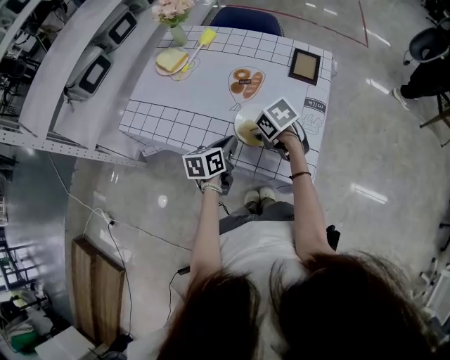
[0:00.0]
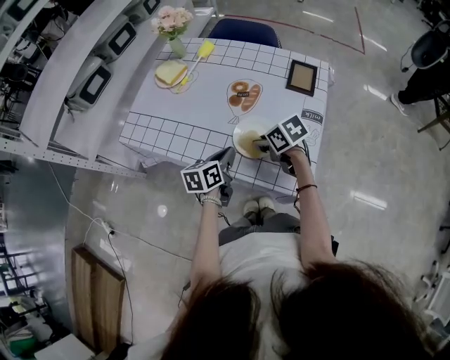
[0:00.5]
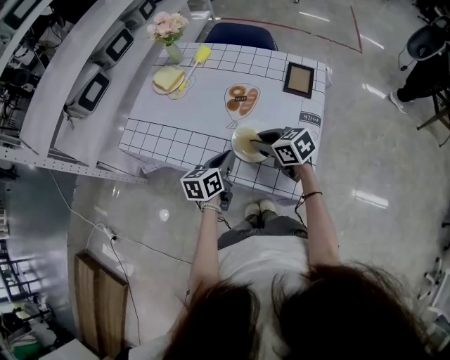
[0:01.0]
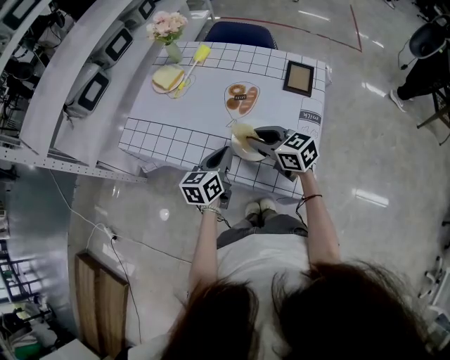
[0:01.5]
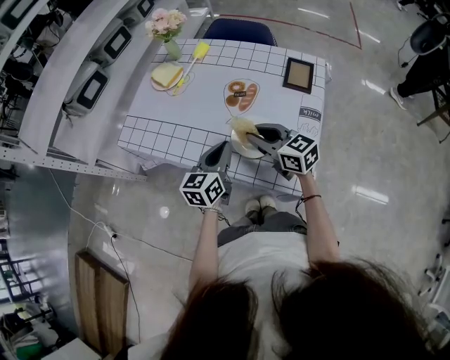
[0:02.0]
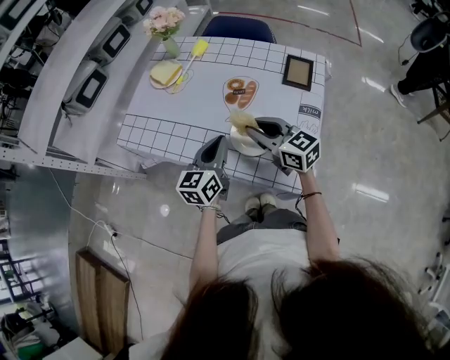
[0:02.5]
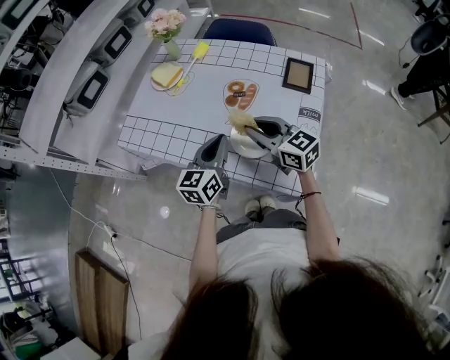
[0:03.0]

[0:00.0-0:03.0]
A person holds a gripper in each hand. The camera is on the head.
0:00.0 to 0:01.5: The right gripper moves upward, approximately 10 cm, and tilts its fingers about 40 degrees upward.
0:01.5 to 0:03.0: The left gripper moves upward, roughly 5 cm.

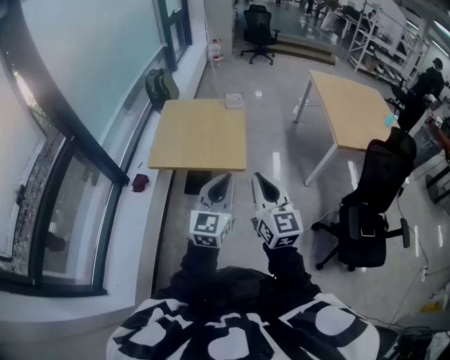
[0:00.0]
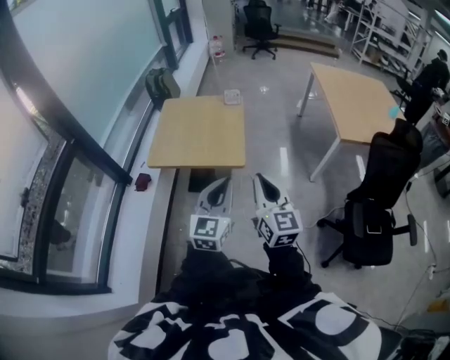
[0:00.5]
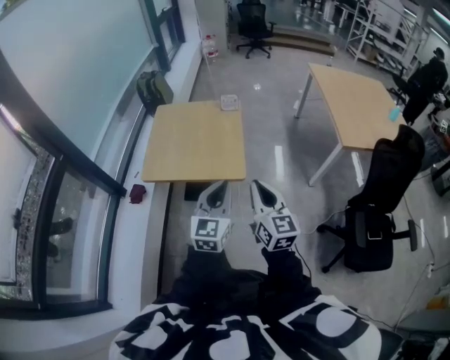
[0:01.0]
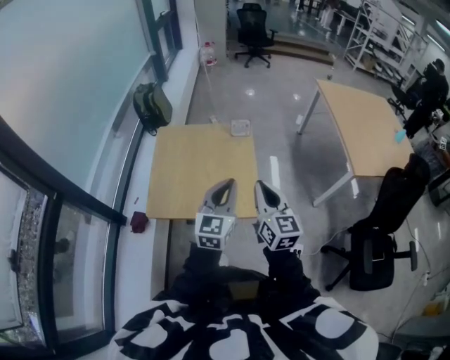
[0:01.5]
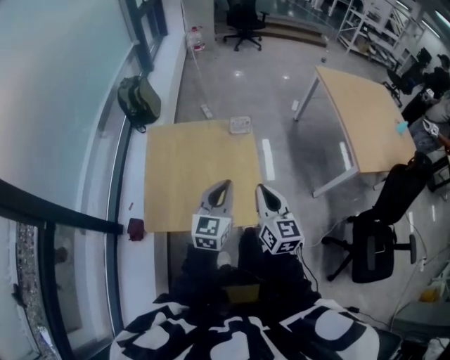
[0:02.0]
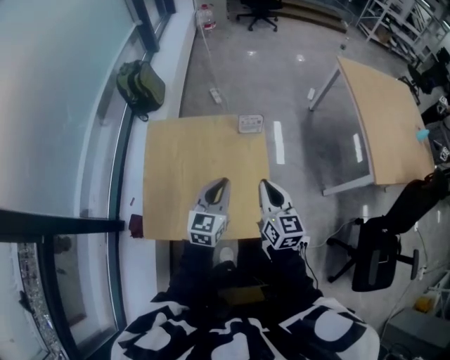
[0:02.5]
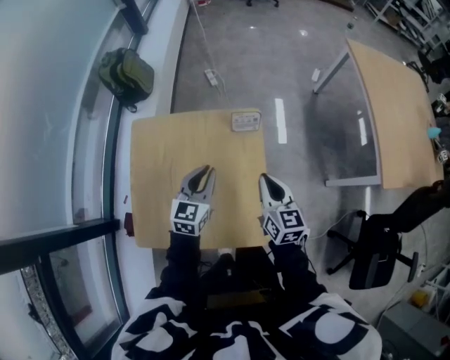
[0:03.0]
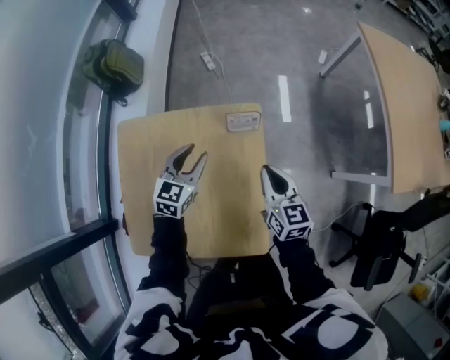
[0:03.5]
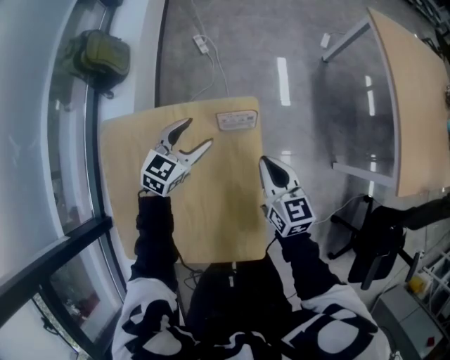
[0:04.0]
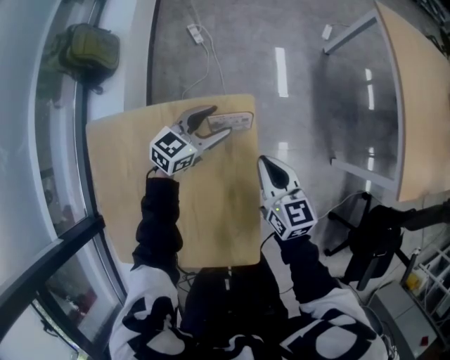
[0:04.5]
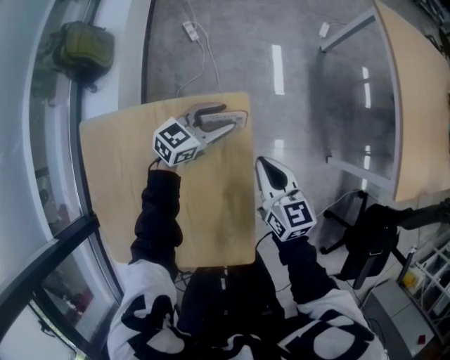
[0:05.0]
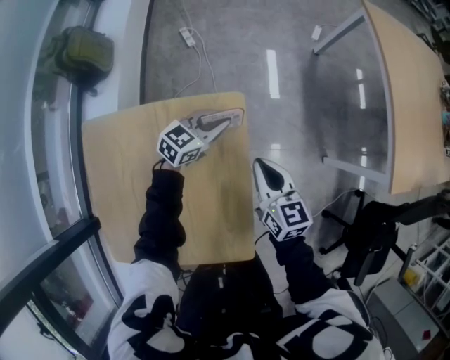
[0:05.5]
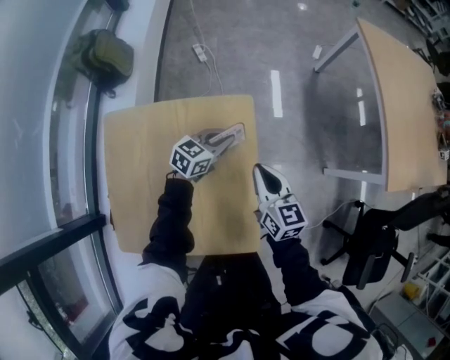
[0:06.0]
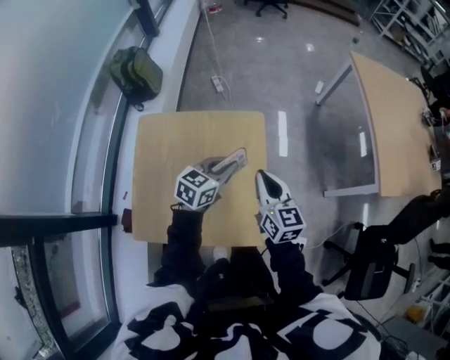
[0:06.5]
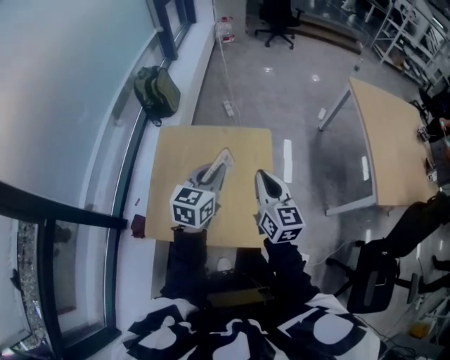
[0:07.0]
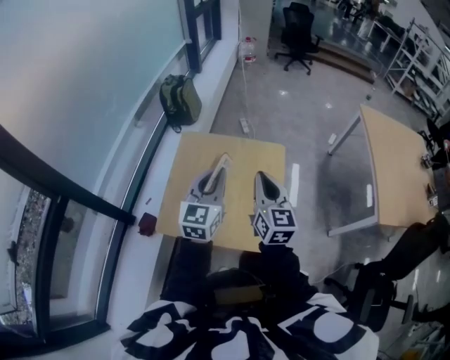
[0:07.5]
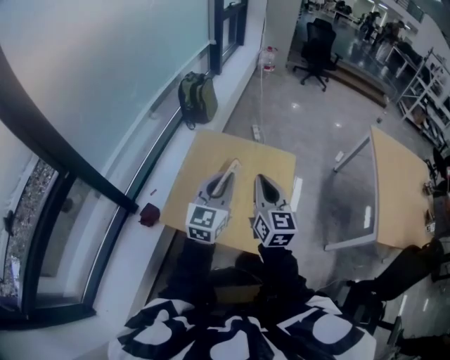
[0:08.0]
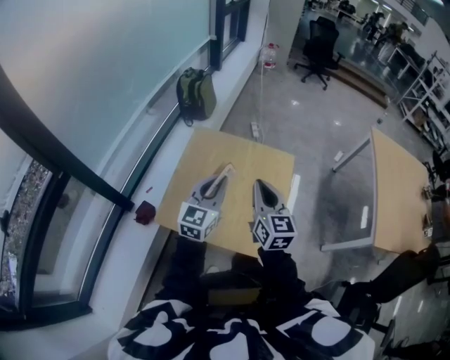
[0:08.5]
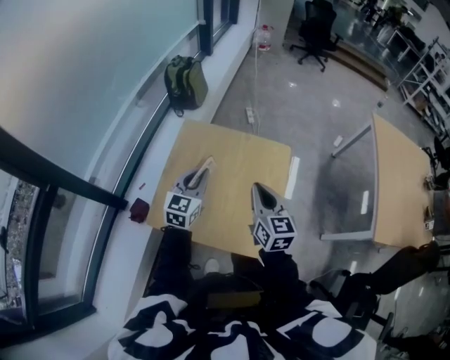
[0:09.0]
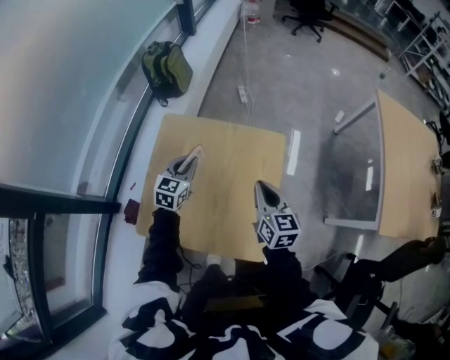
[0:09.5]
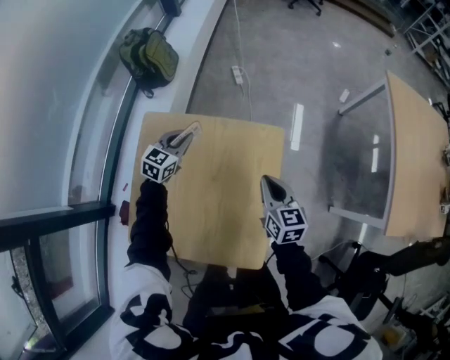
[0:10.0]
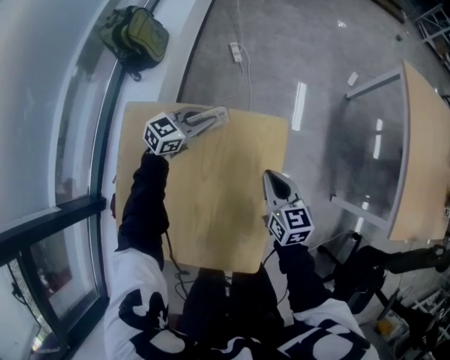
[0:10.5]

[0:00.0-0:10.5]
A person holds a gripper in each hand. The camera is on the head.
0:00.0 to 0:02.0: Both grippers travel together forward, about 35 cm.
0:02.0 to 0:04.0: Both grippers travel together forward and downward, some 40 cm. The left gripper swivels about 30 degrees, and opens up.
0:04.0 to 0:06.5: The right gripper heads backward and upward, covering approximately 15 cm. Meanwhile the left gripper heads backward, to the right and upward, covering roughly 20 cm, and closes up.
0:06.5 to 0:08.5: Both grippers travel together to the left, upward and backward, about 20 cm. The left gripper rotates roughly 40 degrees.
0:08.5 to 0:10.5: The left gripper is displaced forward and downward by some 40 cm, and turns by some 50 degrees. The right gripper travels downward, forward and to the right by about 35 cm, and swivels some 20 degrees.

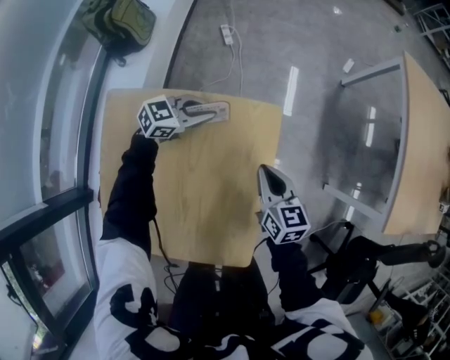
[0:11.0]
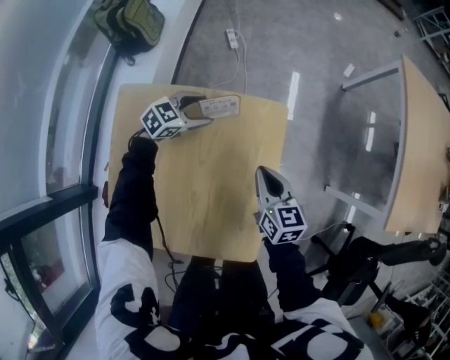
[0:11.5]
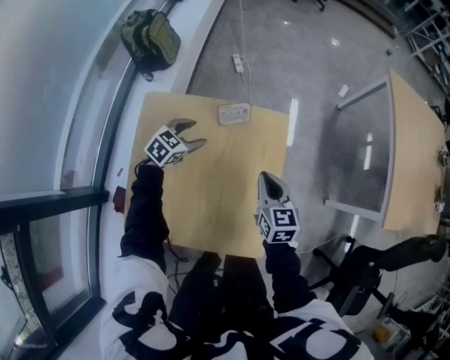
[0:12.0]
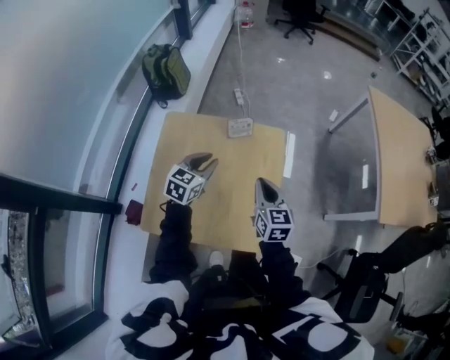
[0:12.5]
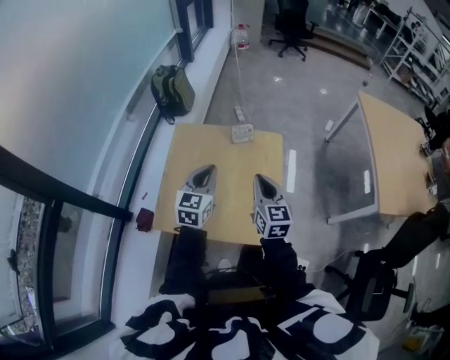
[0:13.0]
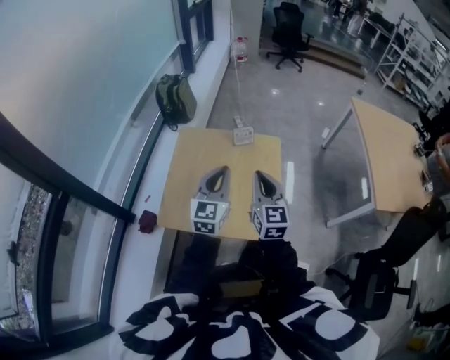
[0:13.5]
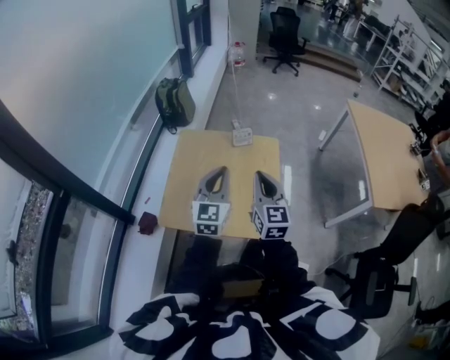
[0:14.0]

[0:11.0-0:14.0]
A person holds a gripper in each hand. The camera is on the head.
0:11.0 to 0:12.5: The grippers both shift backward and upward by approximately 20 cm. The left gripper rotates some 40 degrees, and opens, then closes again.
0:12.5 to 0:14.0: The two grippers go some 20 cm upward and backward. The left gripper rotates about 30 degrees.

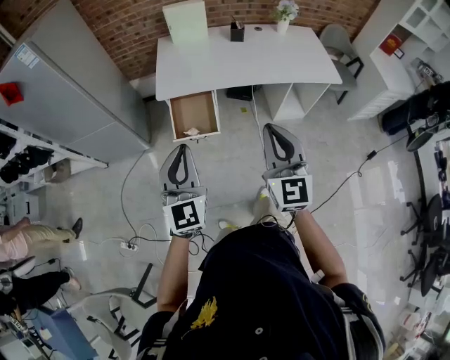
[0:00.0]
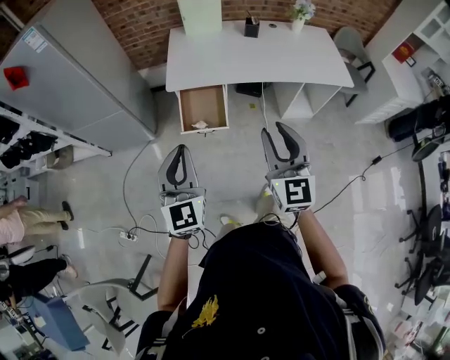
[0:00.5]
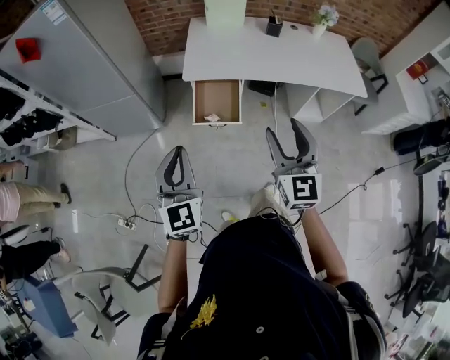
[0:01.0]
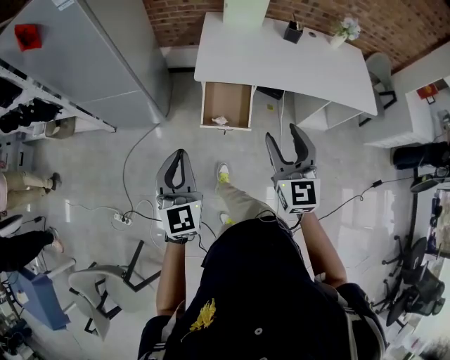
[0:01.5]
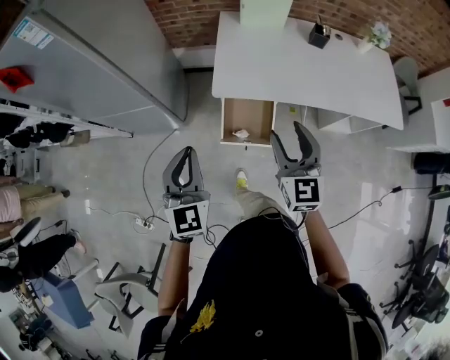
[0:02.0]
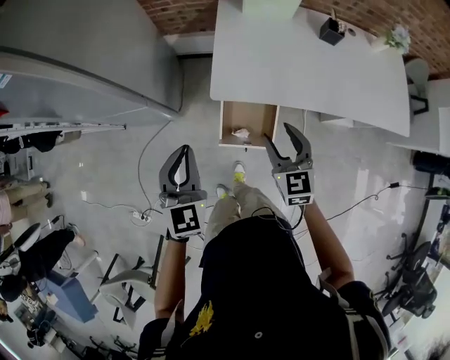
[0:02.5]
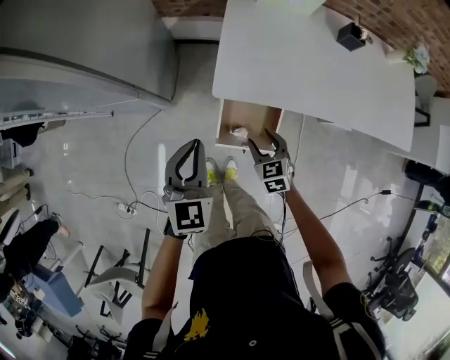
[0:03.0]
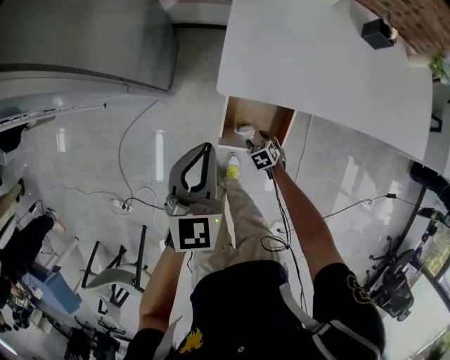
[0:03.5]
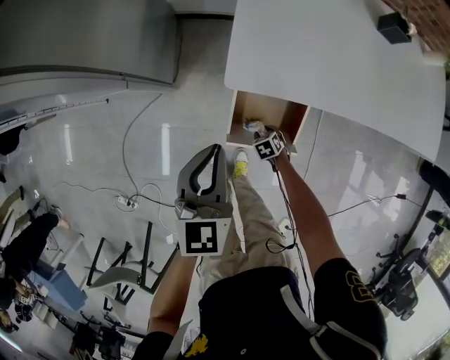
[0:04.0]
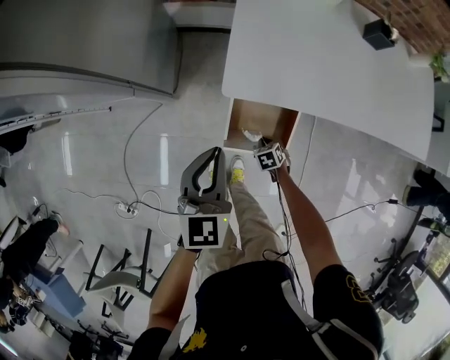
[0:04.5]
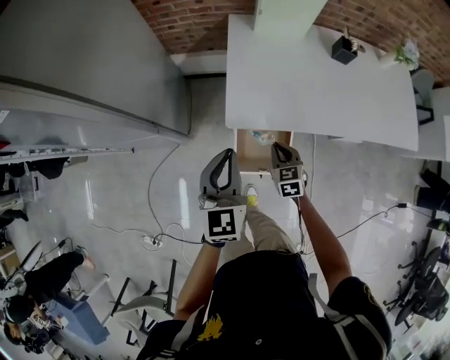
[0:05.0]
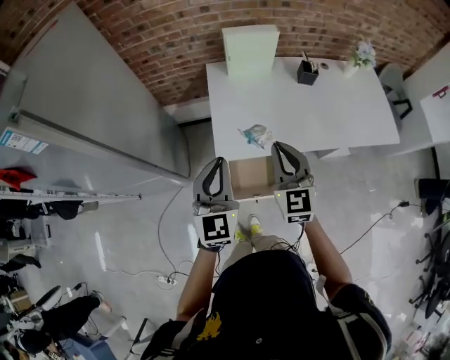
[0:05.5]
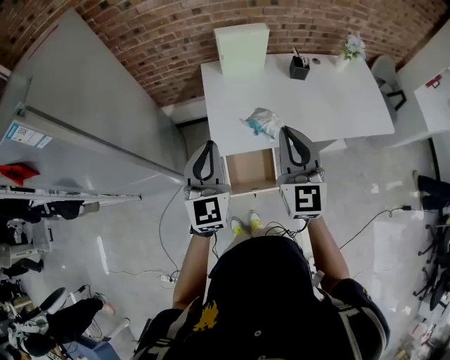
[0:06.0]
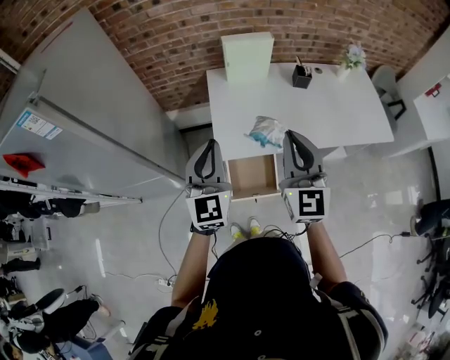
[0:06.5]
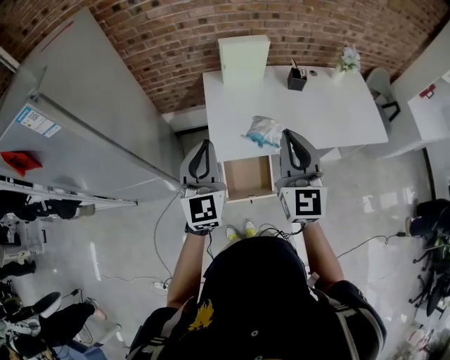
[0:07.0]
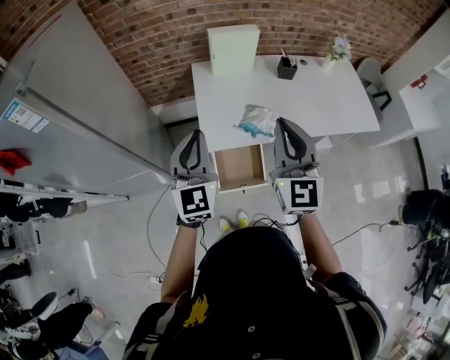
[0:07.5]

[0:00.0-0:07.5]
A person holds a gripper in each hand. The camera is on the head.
0:00.0 to 0:02.0: Both grippers travel together forward and to the left, approximately 30 cm. The right gripper opens.
0:02.0 to 0:04.0: The right gripper travels downward by roughly 70 cm, and tips its fingers downward by some 60 degrees; the left gripper is displaced downward by about 25 cm, and rotates some 20 degrees.
0:04.0 to 0:05.5: The left gripper is displaced upward by approximately 25 cm, and turns by approximately 30 degrees. Meanwhile the right gripper is displaced upward by roughly 70 cm, tips its fingers upward by some 60 degrees, and closes its fingers.
0:05.5 to 0:07.5: The right gripper shifts approximately 15 cm upward. Meanwhile the left gripper travels upward by about 5 cm.

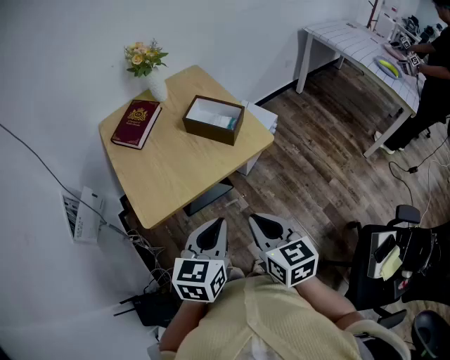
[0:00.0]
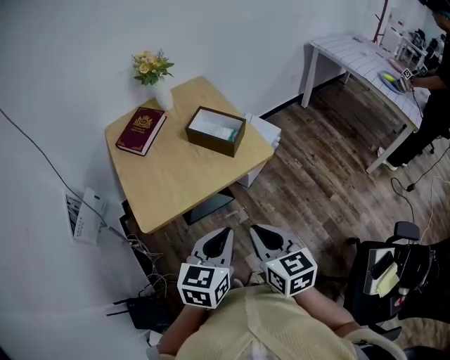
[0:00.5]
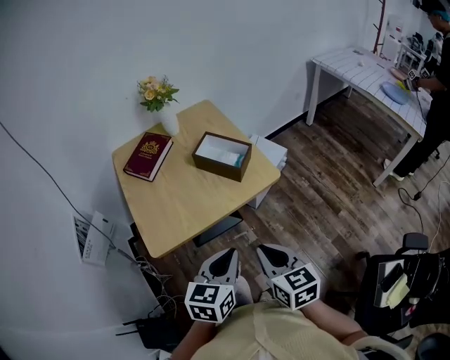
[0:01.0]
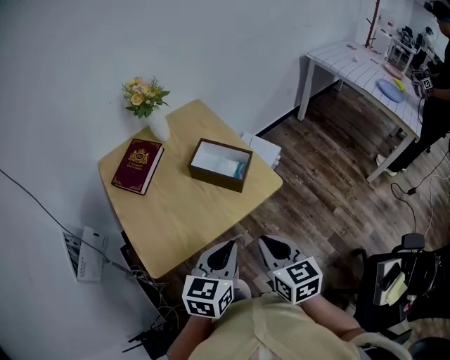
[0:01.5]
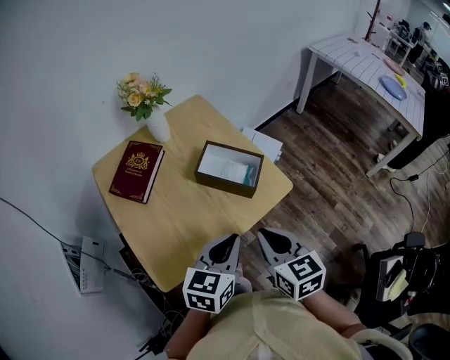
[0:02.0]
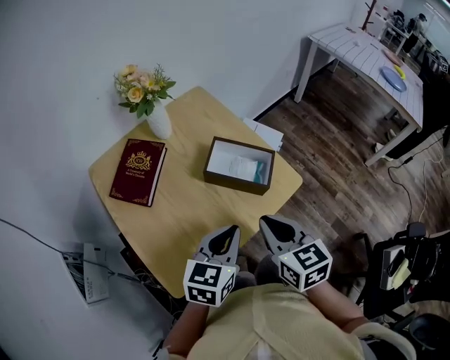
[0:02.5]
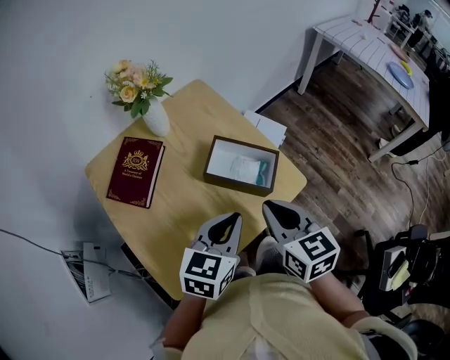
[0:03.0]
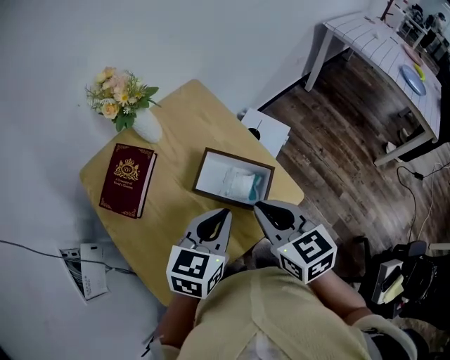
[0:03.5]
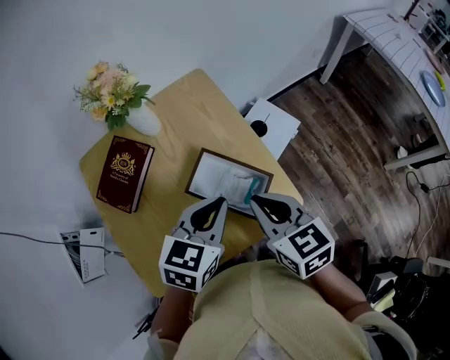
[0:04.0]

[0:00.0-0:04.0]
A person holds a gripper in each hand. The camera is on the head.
0:00.0 to 0:02.0: The two grippers go about 15 cm forward.
0:02.0 to 0:04.0: Both grippers travel together forward, approximately 20 cm.
